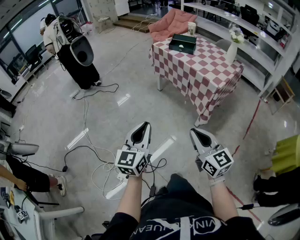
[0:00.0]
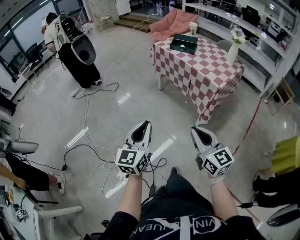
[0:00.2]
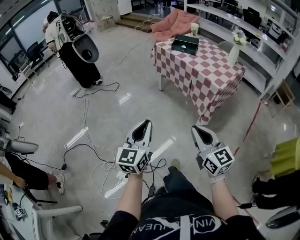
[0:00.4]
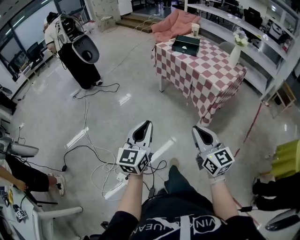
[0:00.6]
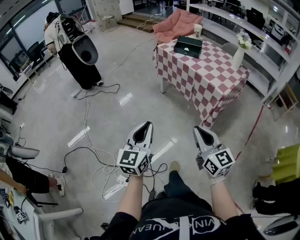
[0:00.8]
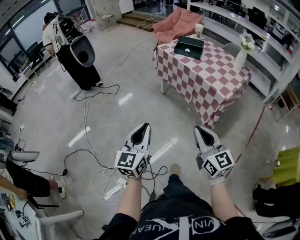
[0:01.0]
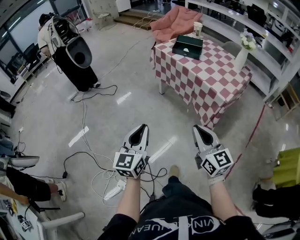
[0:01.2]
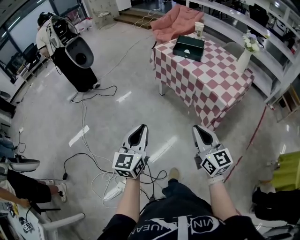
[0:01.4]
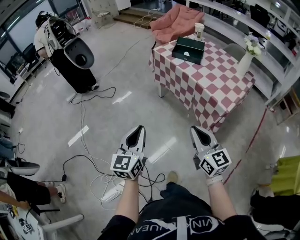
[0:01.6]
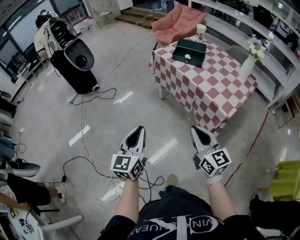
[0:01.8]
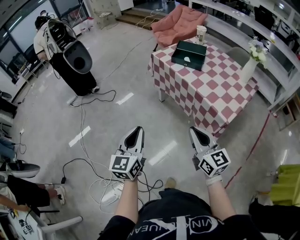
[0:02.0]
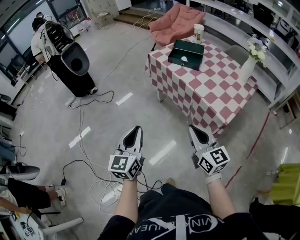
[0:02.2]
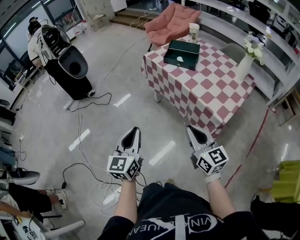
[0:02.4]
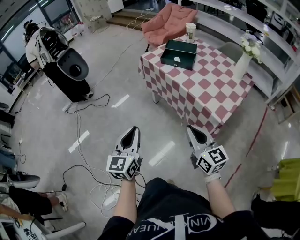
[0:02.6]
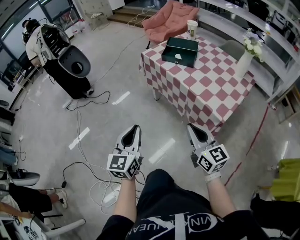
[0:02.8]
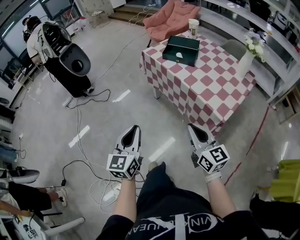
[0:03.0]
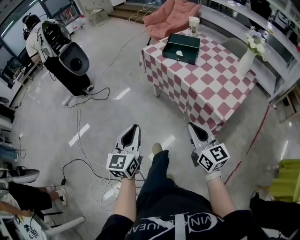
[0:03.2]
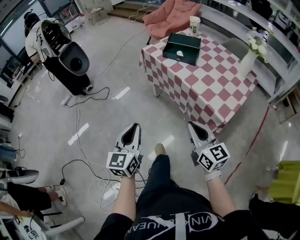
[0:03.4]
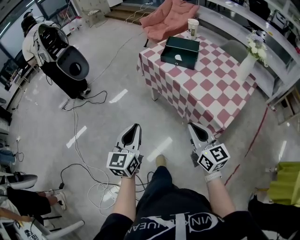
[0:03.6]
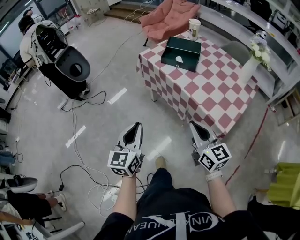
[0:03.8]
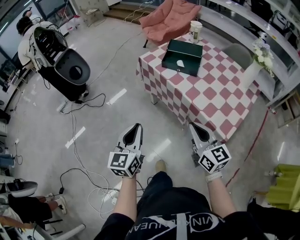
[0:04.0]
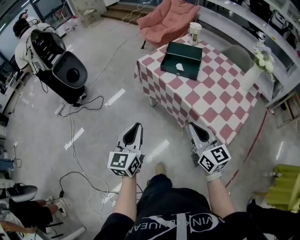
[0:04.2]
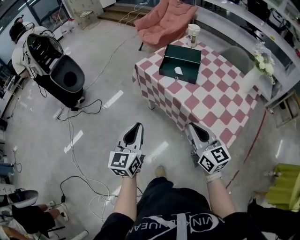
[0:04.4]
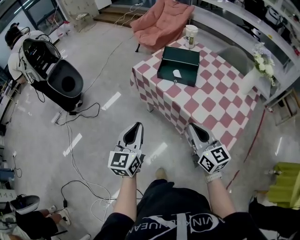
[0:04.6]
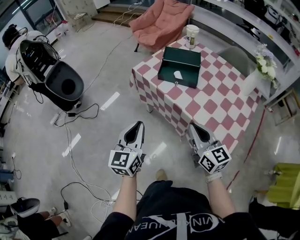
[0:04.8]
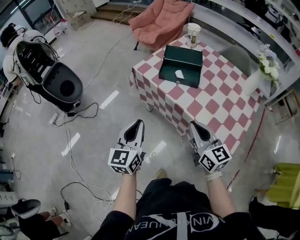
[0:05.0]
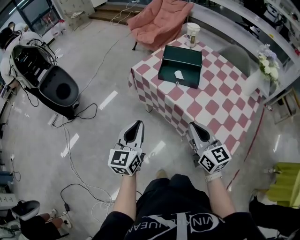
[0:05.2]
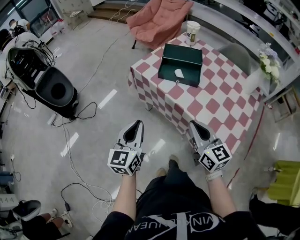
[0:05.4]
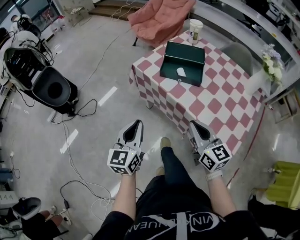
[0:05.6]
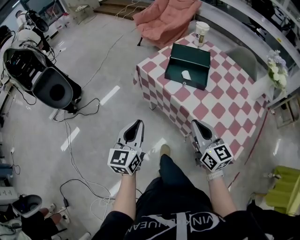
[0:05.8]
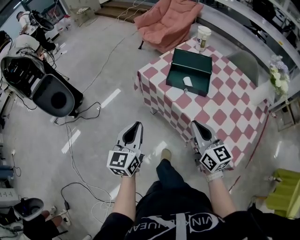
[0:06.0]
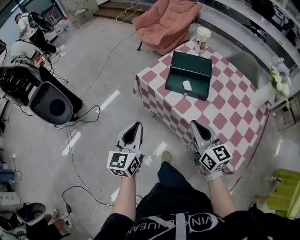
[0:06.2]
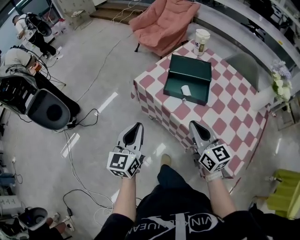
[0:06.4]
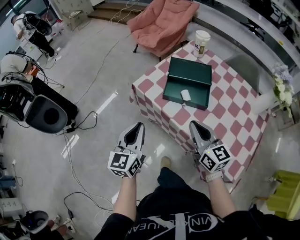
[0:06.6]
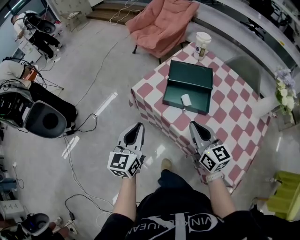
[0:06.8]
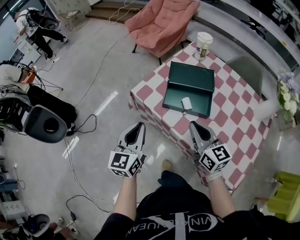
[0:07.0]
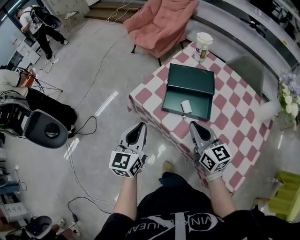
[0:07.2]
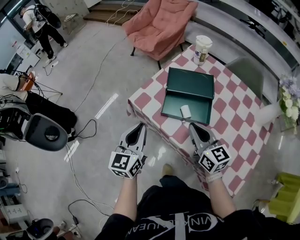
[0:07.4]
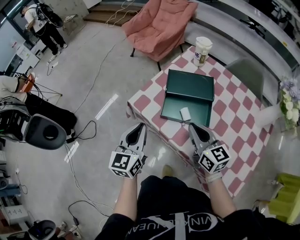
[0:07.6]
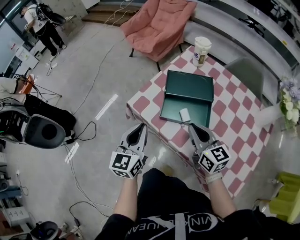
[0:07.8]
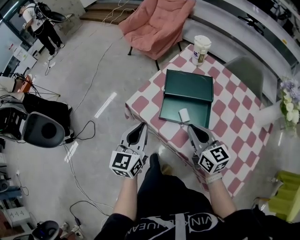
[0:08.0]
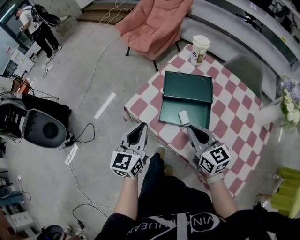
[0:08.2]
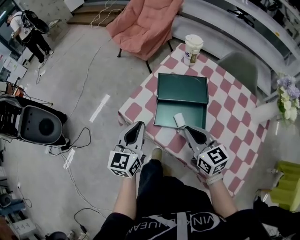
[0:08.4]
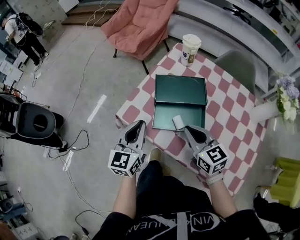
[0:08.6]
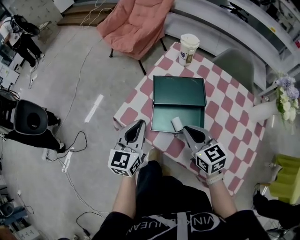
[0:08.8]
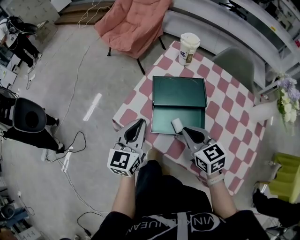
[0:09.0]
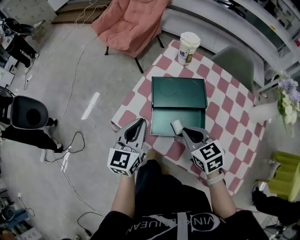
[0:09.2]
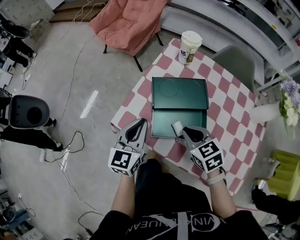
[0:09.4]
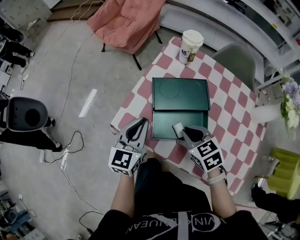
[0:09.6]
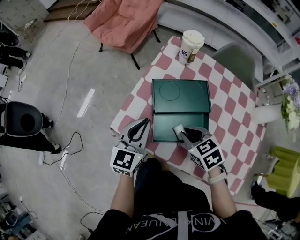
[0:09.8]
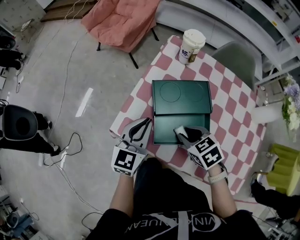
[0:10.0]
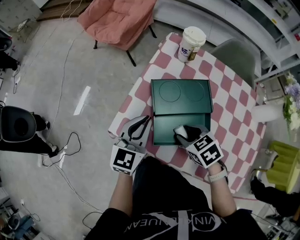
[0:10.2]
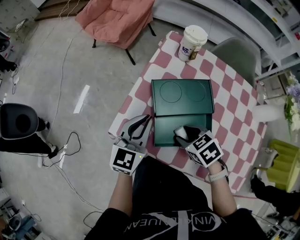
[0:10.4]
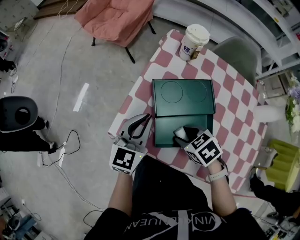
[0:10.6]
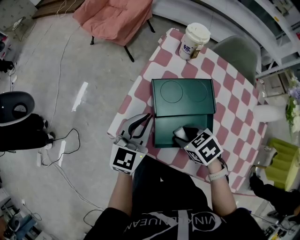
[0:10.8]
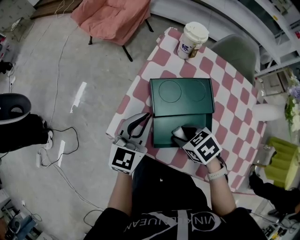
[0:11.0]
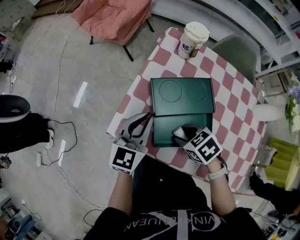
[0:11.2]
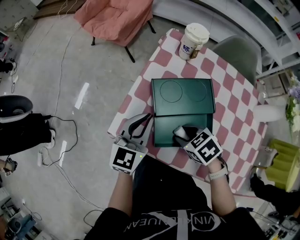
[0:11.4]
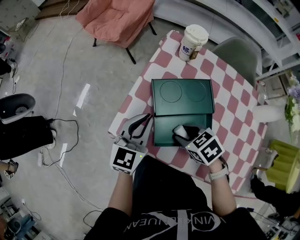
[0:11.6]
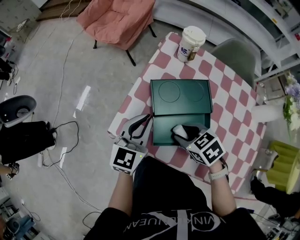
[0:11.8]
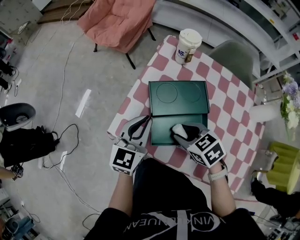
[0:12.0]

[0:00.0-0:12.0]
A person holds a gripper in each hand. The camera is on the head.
0:00.0 to 0:01.6: The two grippers go approximately 20 cm forward.
0:01.6 to 0:03.0: The two grippers go approximately 10 cm forward and to the right.
0:03.0 to 0:04.4: The two grippers go some 20 cm forward.
0:04.4 to 0:06.0: Both grippers move forward, some 15 cm.
0:06.0 to 0:07.6: Both grippers move forward, approximately 20 cm.
0:07.6 to 0:09.0: The left gripper heads forward, covering about 10 cm; the right gripper moves forward, some 5 cm, and changes its angle by about 20 degrees.
0:09.0 to 0:10.4: The left gripper is displaced forward by some 5 cm, while the right gripper moves downward, about 10 cm, points its fingers about 30 degrees further downward, and opens up.
0:10.4 to 0:12.0: There are only small adjustments of the grippers.

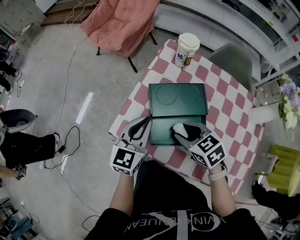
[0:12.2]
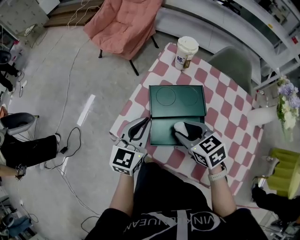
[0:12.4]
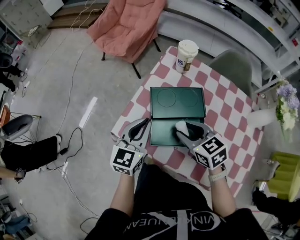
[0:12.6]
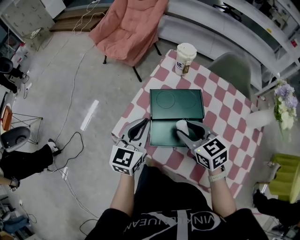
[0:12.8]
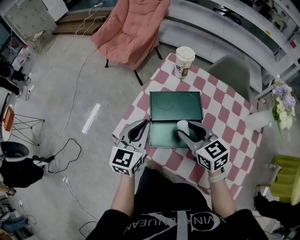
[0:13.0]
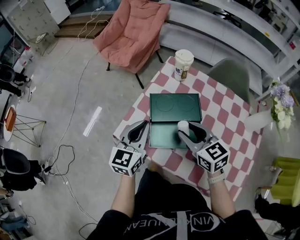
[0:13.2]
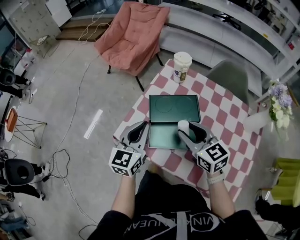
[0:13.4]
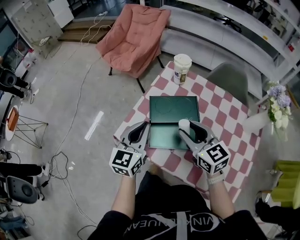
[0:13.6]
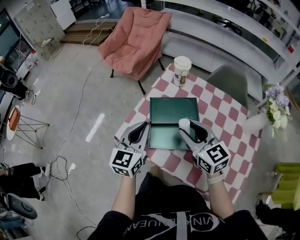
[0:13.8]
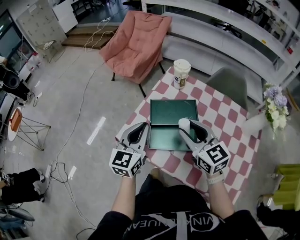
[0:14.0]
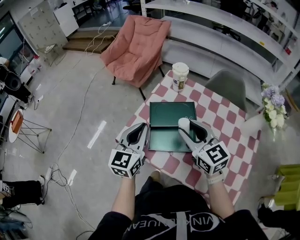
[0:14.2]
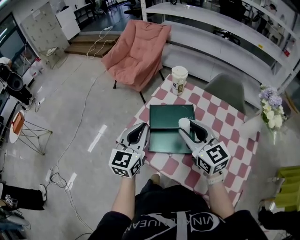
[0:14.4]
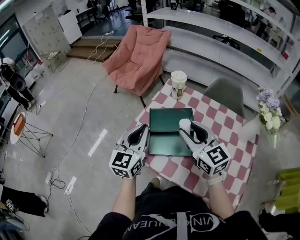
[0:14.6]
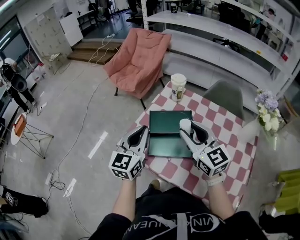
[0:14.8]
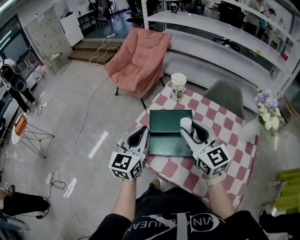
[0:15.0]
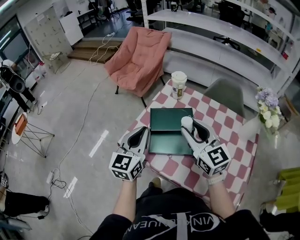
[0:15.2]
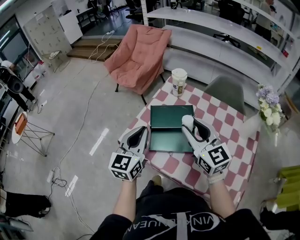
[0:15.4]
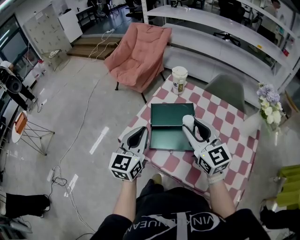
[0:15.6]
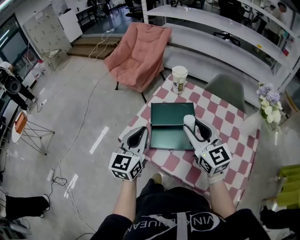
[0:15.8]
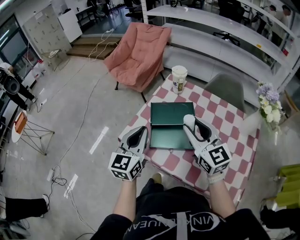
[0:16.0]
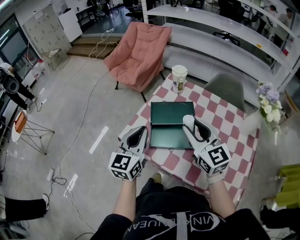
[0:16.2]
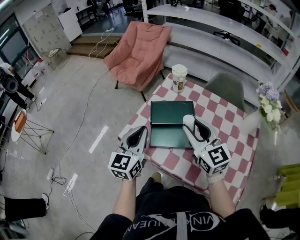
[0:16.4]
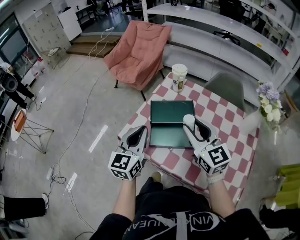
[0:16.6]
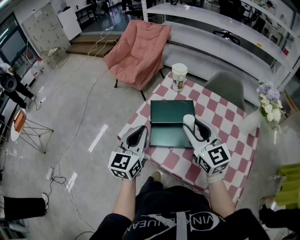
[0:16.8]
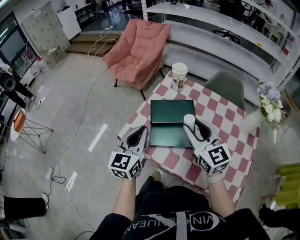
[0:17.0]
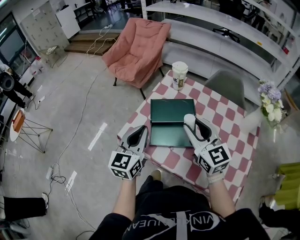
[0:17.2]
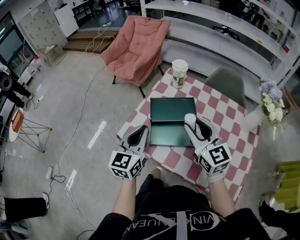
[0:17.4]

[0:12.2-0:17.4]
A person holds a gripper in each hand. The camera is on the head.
0:12.2 to 0:14.0: The left gripper travels upward by some 10 cm; the right gripper travels upward by roughly 15 cm, and angles its fingers upward, by roughly 30 degrees.
0:14.0 to 0:15.6: The right gripper moves roughly 5 cm.
0:15.6 to 0:17.4: The grippers move only a little.

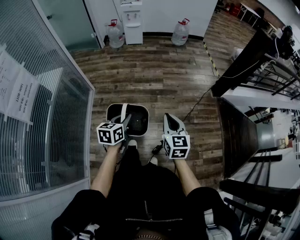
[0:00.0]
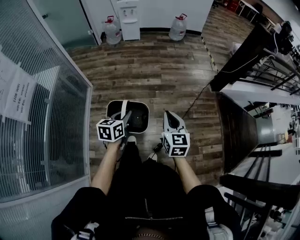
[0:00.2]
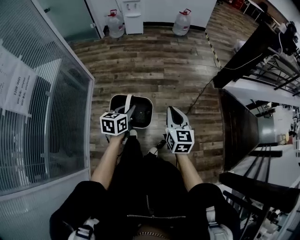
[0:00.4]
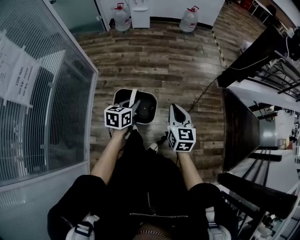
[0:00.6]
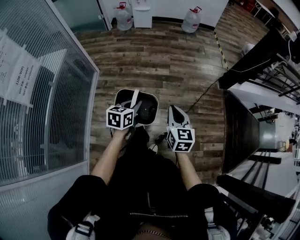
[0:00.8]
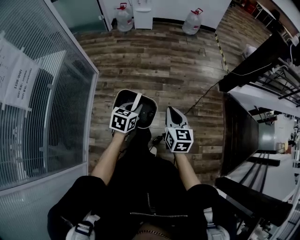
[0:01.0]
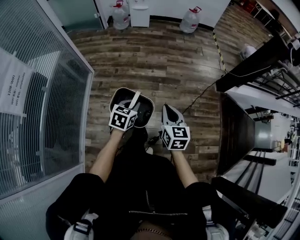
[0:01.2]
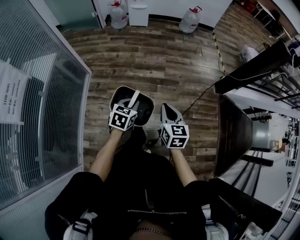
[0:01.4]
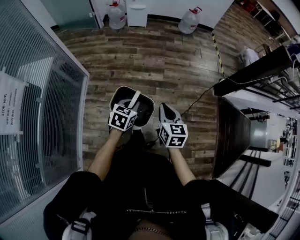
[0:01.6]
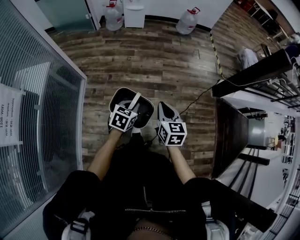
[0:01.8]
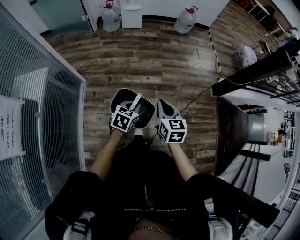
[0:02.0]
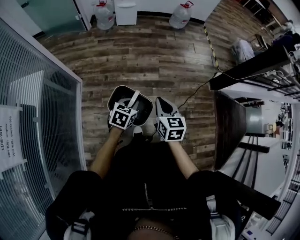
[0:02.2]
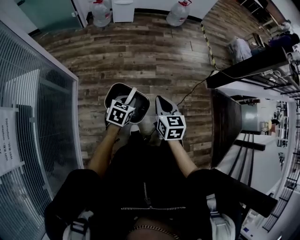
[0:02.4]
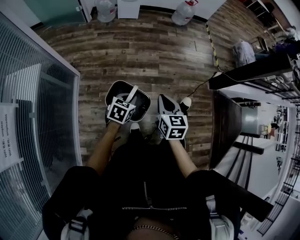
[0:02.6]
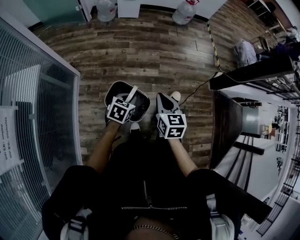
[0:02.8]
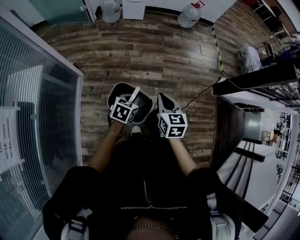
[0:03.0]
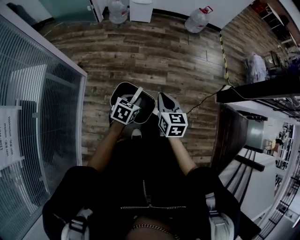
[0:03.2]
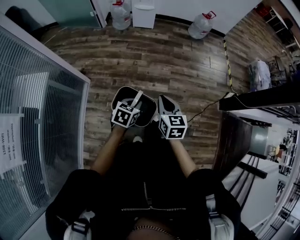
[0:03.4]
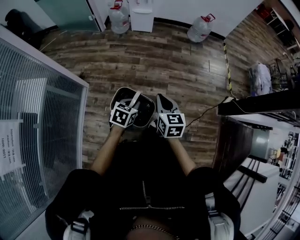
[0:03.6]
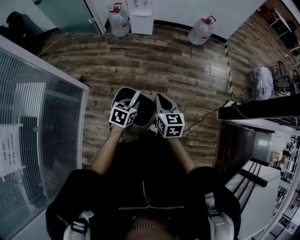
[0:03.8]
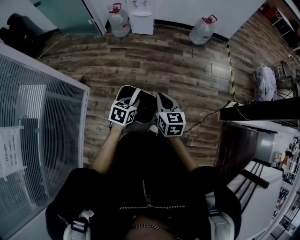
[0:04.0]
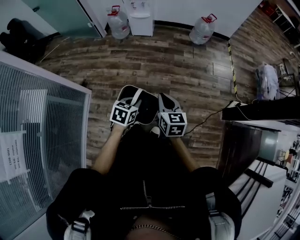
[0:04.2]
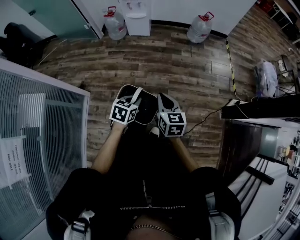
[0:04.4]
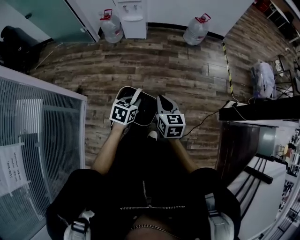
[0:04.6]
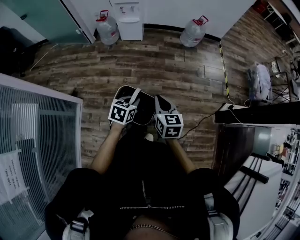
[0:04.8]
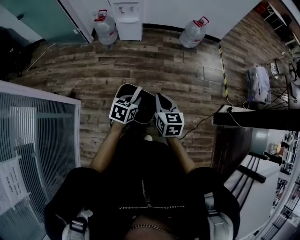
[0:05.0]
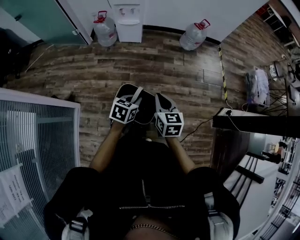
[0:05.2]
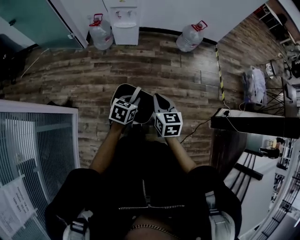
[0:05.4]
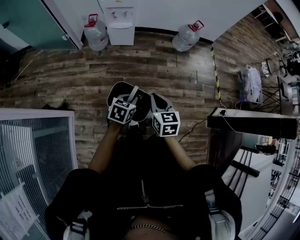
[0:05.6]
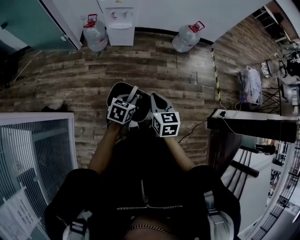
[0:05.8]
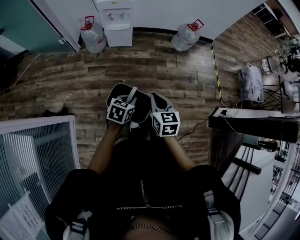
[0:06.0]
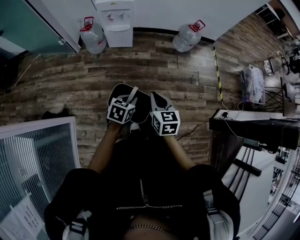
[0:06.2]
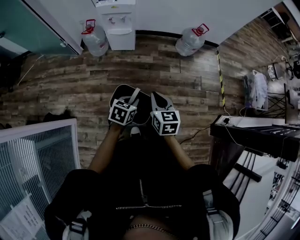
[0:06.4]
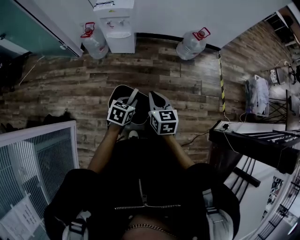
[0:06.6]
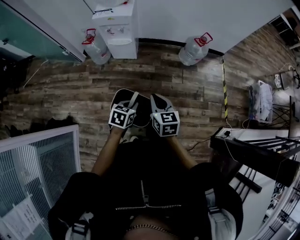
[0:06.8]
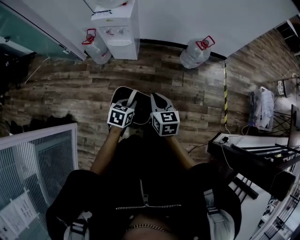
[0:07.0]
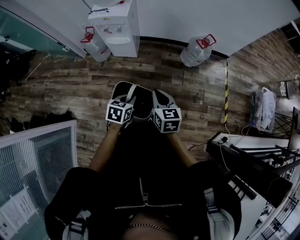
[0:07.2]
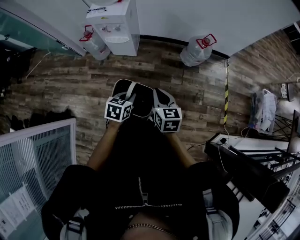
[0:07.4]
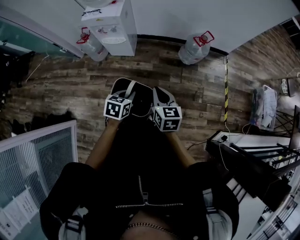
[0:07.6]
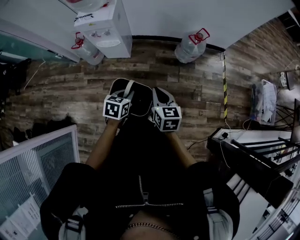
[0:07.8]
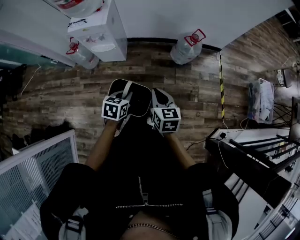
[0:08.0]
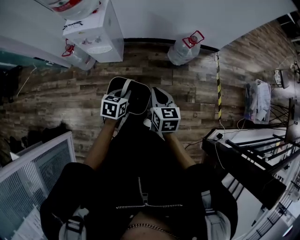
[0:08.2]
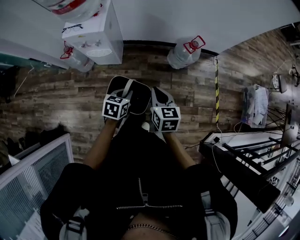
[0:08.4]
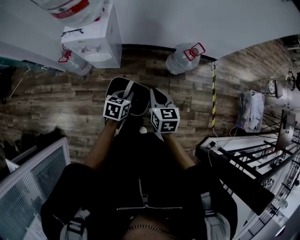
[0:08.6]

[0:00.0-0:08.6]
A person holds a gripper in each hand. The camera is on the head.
0:00.0 to 0:01.4: The left gripper moves forward and downward, roughly 15 cm. Meanwhile the right gripper is displaced forward by about 10 cm.
0:01.4 to 0:02.8: The two grippers go about 20 cm forward and to the left.
0:02.8 to 0:04.4: Both grippers move forward, some 25 cm.
0:04.4 to 0:05.8: The right gripper moves forward and to the left, roughly 25 cm; the left gripper travels forward by about 25 cm.
0:05.8 to 0:07.2: Both grippers move forward, roughly 25 cm.
0:07.2 to 0:08.6: Both grippers move forward, about 20 cm.
